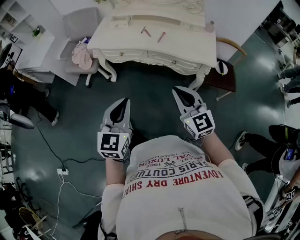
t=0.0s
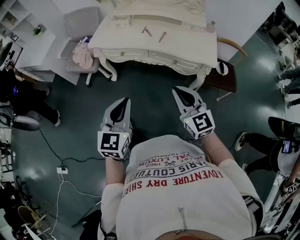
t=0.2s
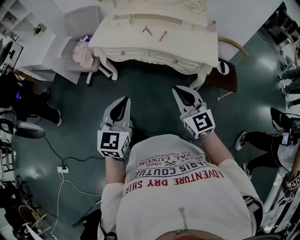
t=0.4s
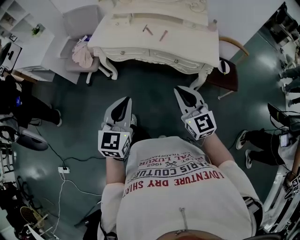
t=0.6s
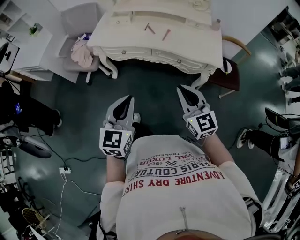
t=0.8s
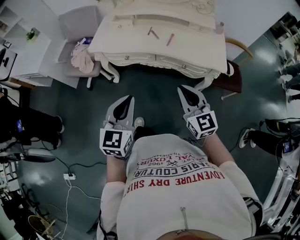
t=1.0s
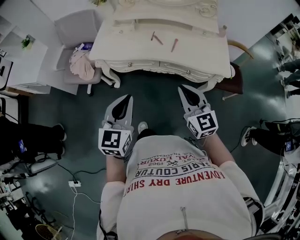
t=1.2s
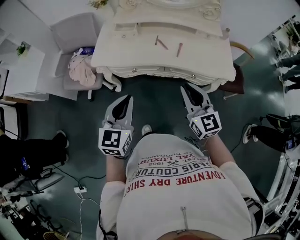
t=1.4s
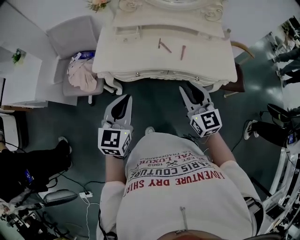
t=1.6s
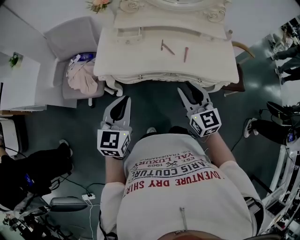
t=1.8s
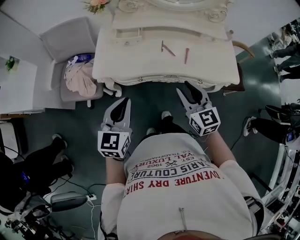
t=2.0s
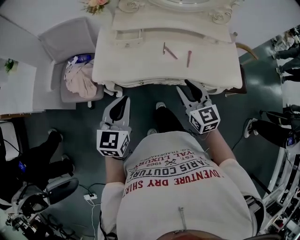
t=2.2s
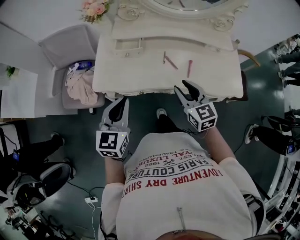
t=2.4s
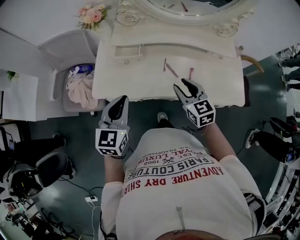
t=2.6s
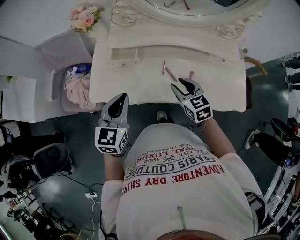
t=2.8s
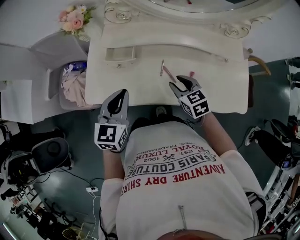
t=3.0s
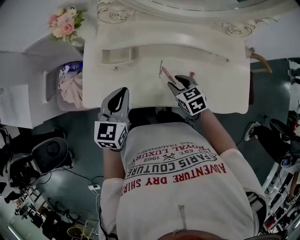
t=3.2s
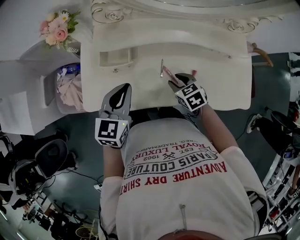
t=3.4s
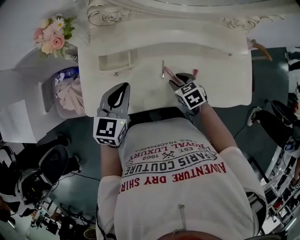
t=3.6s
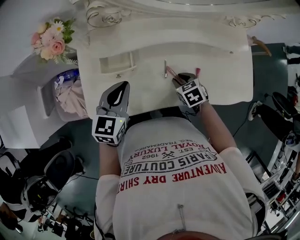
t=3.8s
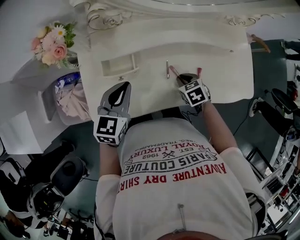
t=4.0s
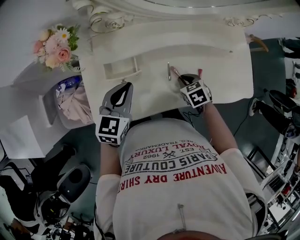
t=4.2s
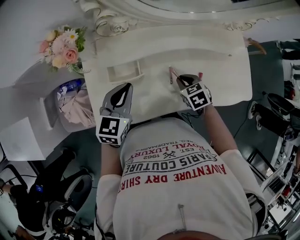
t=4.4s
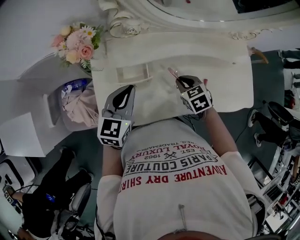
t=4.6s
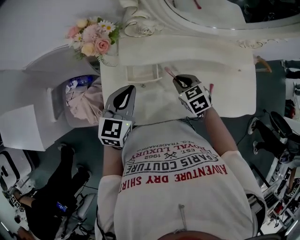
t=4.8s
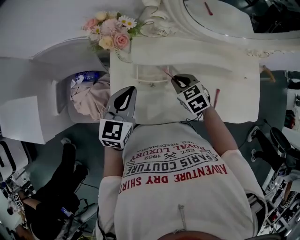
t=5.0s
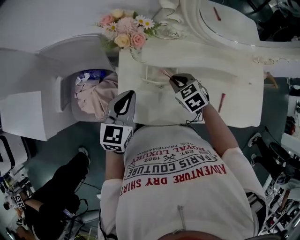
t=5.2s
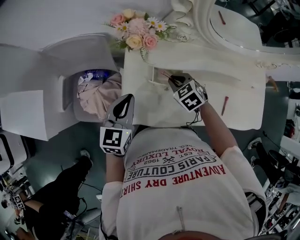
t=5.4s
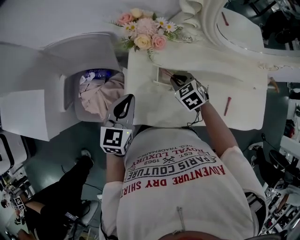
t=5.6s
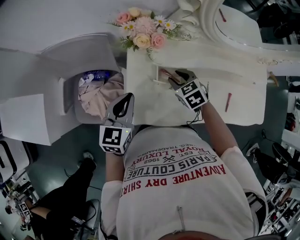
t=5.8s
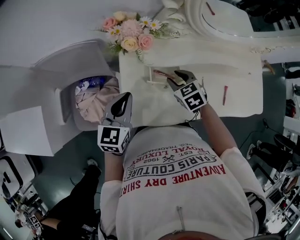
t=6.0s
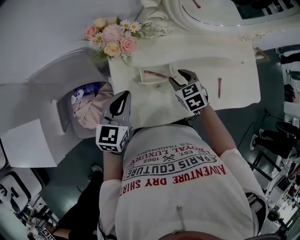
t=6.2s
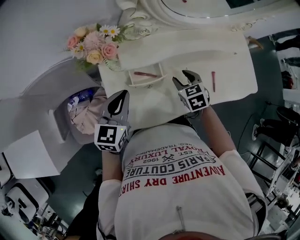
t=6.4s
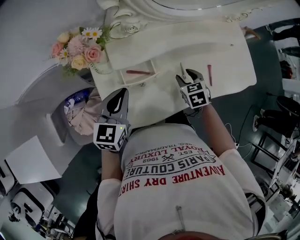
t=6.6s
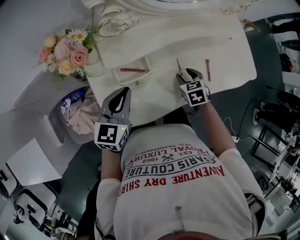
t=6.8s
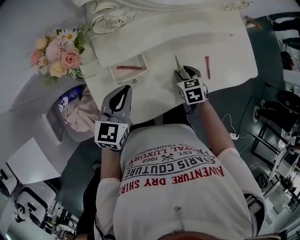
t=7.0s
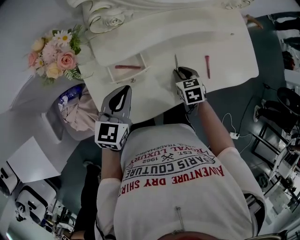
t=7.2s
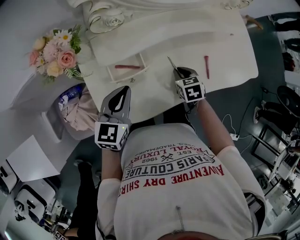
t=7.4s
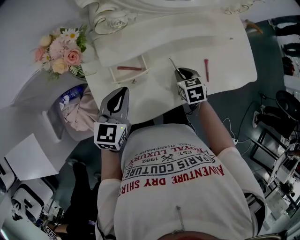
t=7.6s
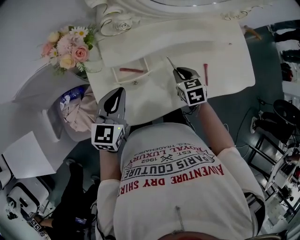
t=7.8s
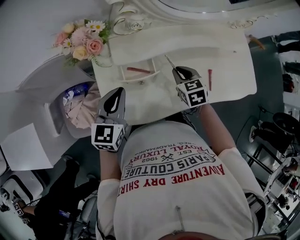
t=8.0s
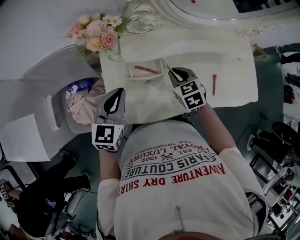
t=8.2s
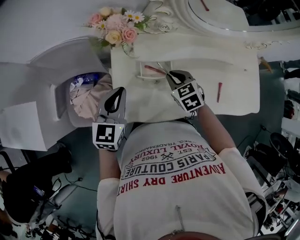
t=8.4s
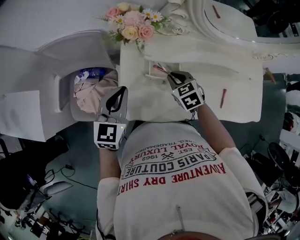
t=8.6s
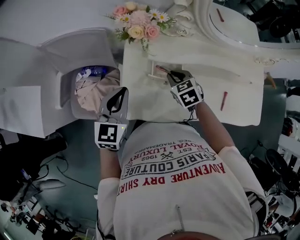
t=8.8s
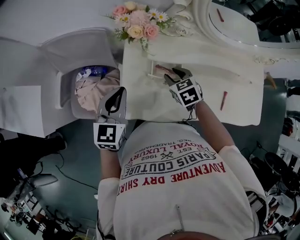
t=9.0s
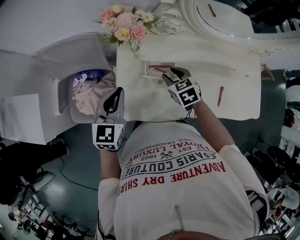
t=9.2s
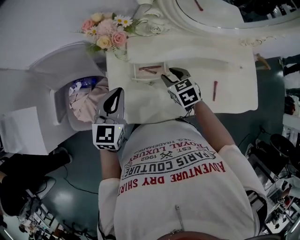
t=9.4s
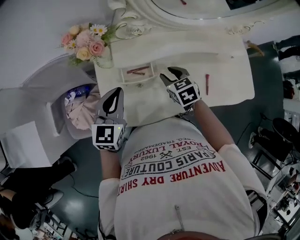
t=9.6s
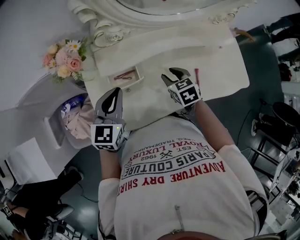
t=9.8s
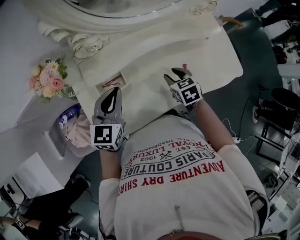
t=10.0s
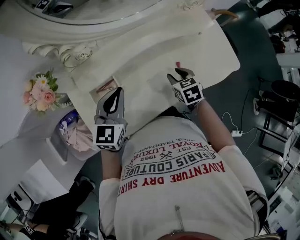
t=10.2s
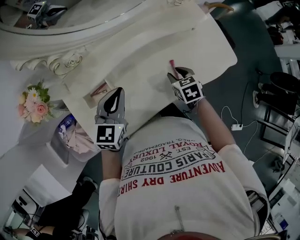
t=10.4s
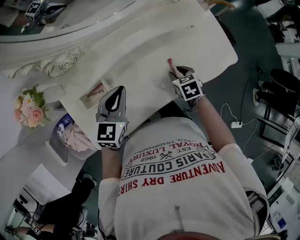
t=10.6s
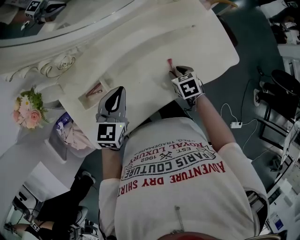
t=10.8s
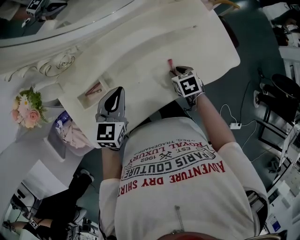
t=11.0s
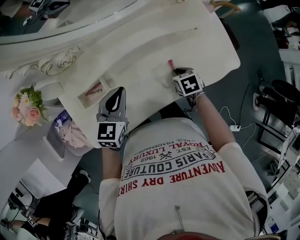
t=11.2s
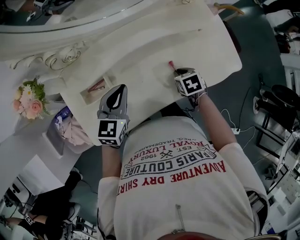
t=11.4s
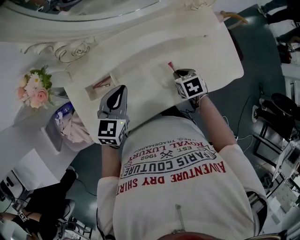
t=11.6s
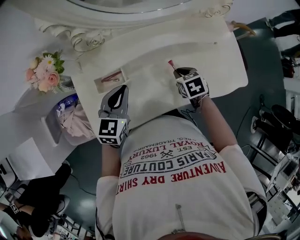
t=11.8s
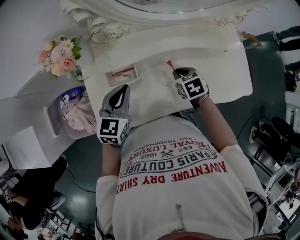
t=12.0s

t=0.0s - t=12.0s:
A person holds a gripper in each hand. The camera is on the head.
t=0.0s - t=1.6s: Both grippers move forward and to the left, roughly 30 cm.
t=1.6s - t=3.0s: The left gripper moves forward, some 25 cm. The right gripper is displaced forward and downward by roughly 30 cm, and angles its fingers downward, by about 30 degrees.
t=3.0s - t=4.4s: The right gripper travels downward and forward by roughly 10 cm, and rotates approximately 20 degrees; the left gripper moves forward, some 10 cm.
t=4.4s - t=6.0s: The grippers both shift to the left by approximately 20 cm.
t=6.0s - t=7.6s: The left gripper moves about 15 cm; the right gripper moves approximately 20 cm, and turns by about 30 degrees.
t=7.6s - t=9.0s: The left gripper changes place by some 15 cm, and changes its angle by some 20 degrees. Meanwhile the right gripper changes place by roughly 20 cm, and rotates some 30 degrees.
t=9.0s - t=10.4s: The left gripper shifts by roughly 30 cm, and rotates some 30 degrees, while the right gripper ends up about 35 cm from where it was, and rotates about 40 degrees.
t=10.4s - t=12.0s: The two grippers go some 10 cm to the left.

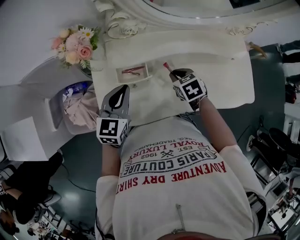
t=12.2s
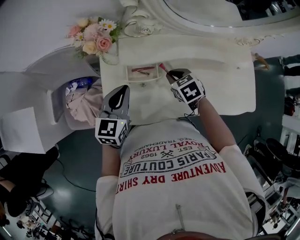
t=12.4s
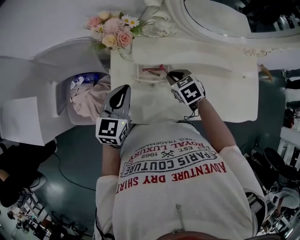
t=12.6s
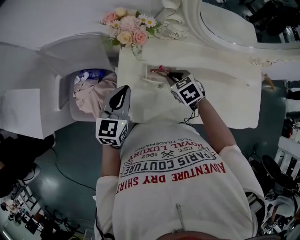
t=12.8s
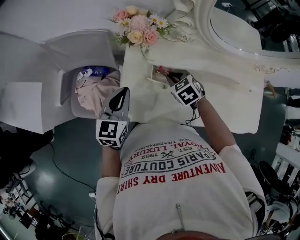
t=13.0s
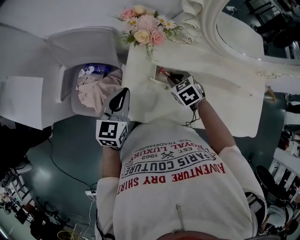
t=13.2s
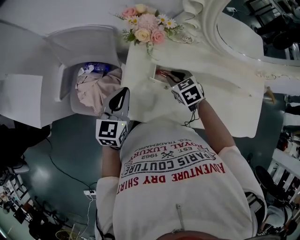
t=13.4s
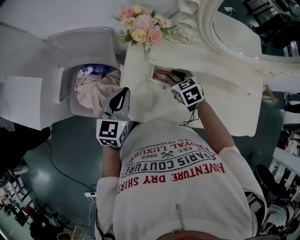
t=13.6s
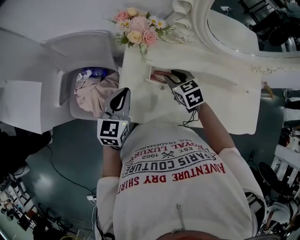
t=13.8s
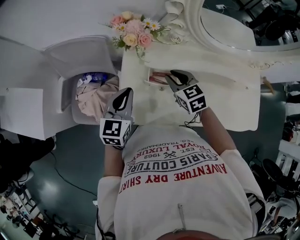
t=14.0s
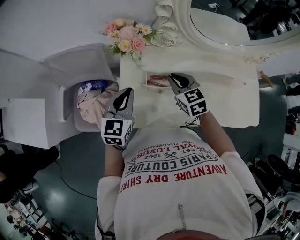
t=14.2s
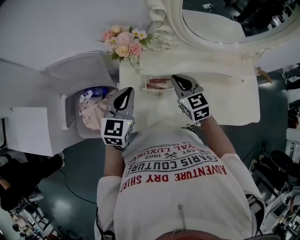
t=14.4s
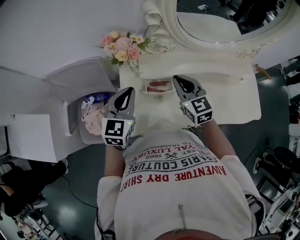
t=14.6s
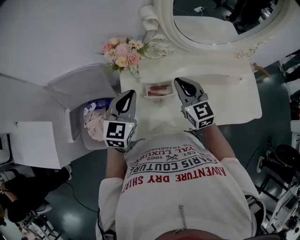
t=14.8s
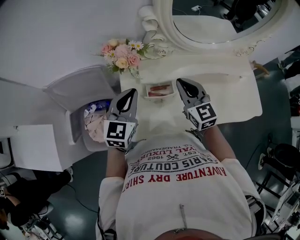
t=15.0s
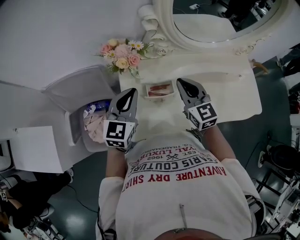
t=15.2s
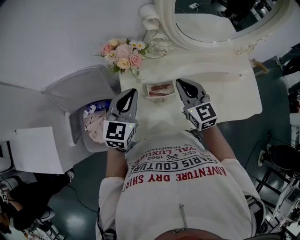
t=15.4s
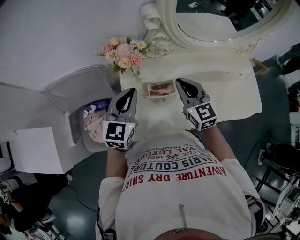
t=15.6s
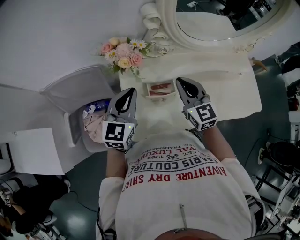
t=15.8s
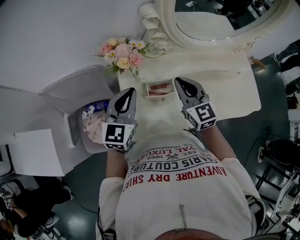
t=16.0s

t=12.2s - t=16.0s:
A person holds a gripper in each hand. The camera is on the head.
t=12.2s - t=13.4s: Both grippers travel together to the left, some 15 cm. The right gripper changes its angle by approximately 20 degrees.
t=13.4s - t=14.8s: The left gripper moves upward and to the right, about 10 cm, and turns by about 20 degrees, while the right gripper moves upward, about 15 cm, and tilts its fingers about 40 degrees upward.
t=14.8s - t=16.0s: The grippers move only a little.

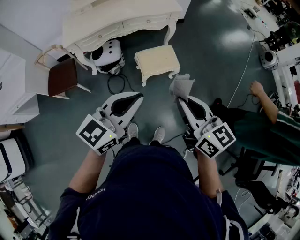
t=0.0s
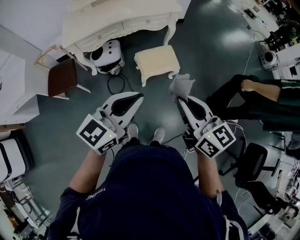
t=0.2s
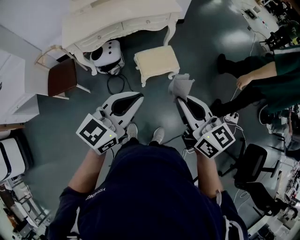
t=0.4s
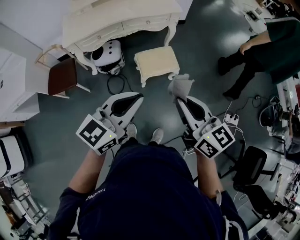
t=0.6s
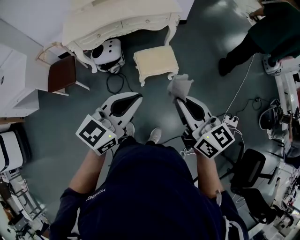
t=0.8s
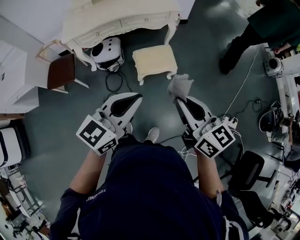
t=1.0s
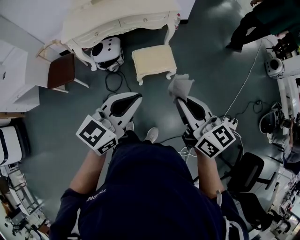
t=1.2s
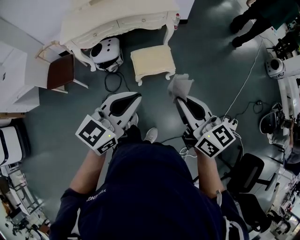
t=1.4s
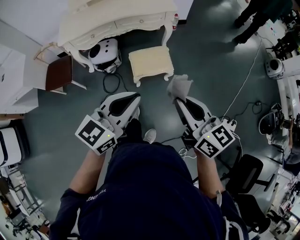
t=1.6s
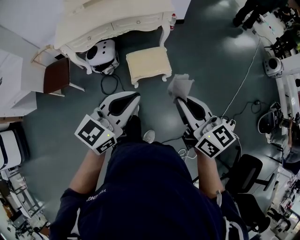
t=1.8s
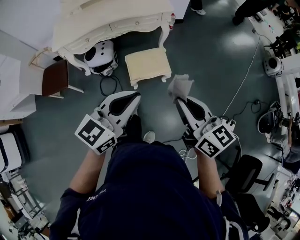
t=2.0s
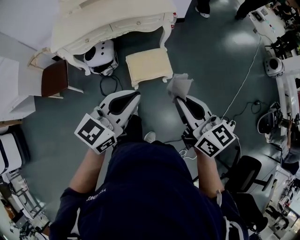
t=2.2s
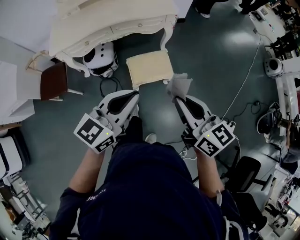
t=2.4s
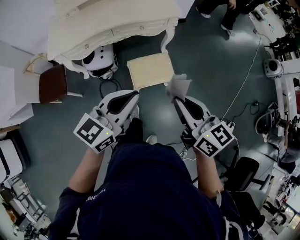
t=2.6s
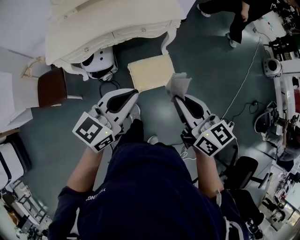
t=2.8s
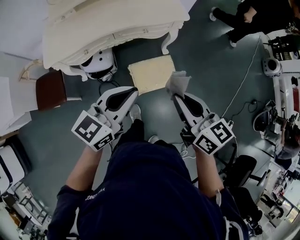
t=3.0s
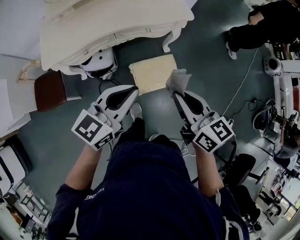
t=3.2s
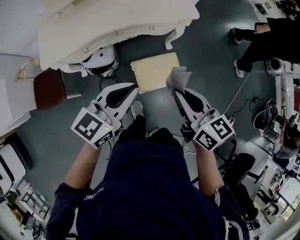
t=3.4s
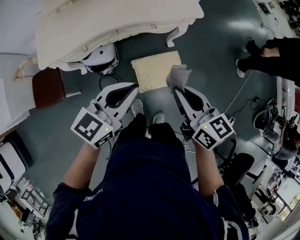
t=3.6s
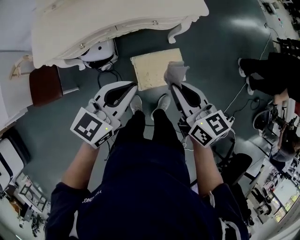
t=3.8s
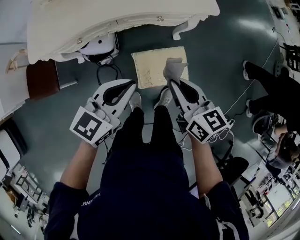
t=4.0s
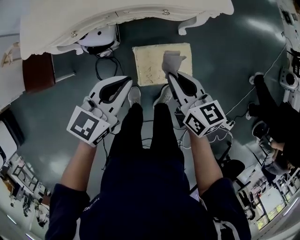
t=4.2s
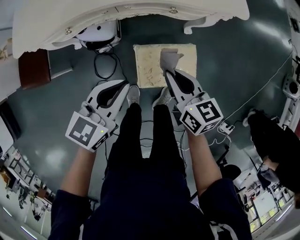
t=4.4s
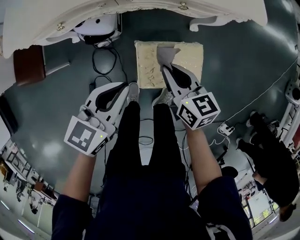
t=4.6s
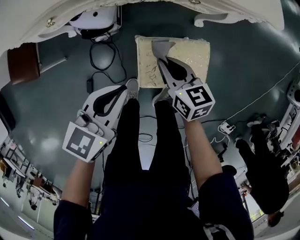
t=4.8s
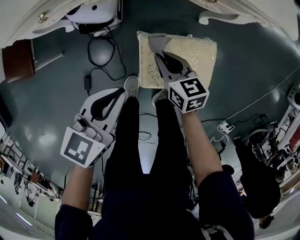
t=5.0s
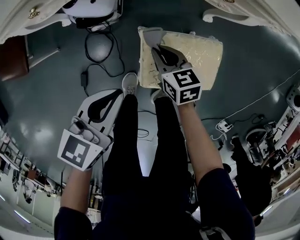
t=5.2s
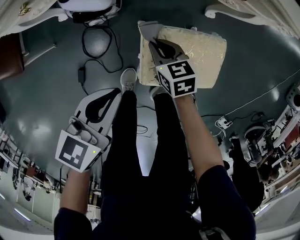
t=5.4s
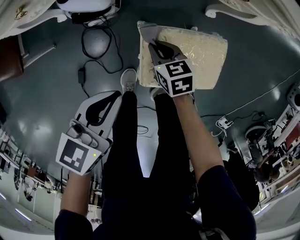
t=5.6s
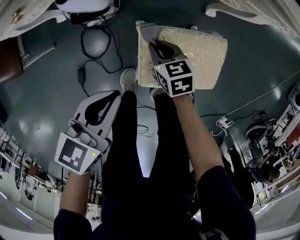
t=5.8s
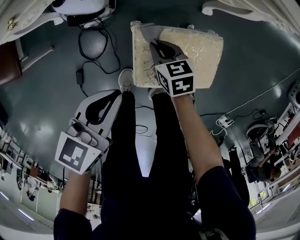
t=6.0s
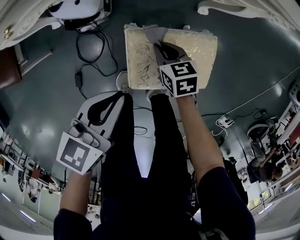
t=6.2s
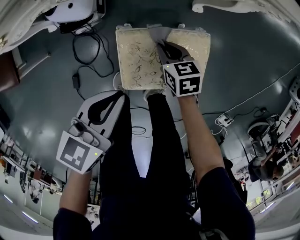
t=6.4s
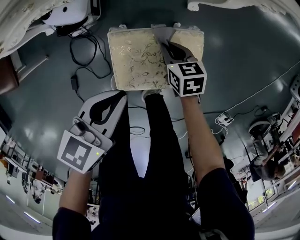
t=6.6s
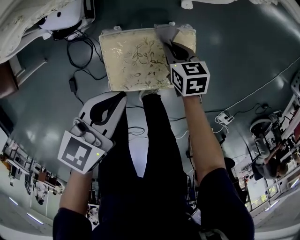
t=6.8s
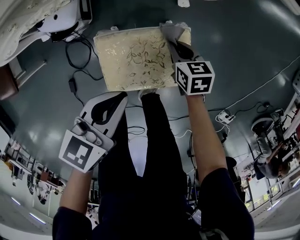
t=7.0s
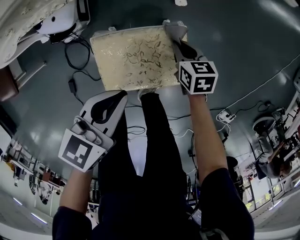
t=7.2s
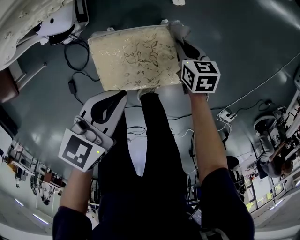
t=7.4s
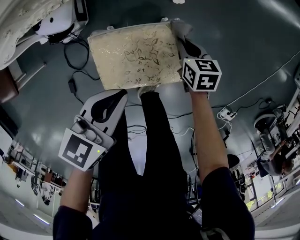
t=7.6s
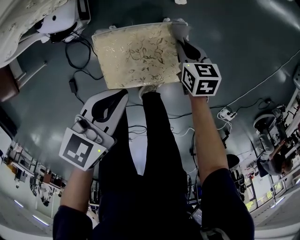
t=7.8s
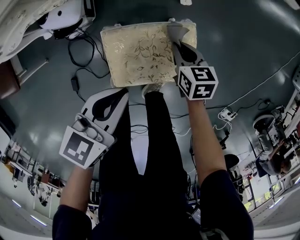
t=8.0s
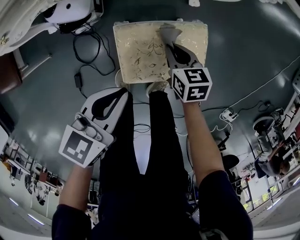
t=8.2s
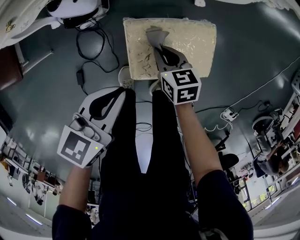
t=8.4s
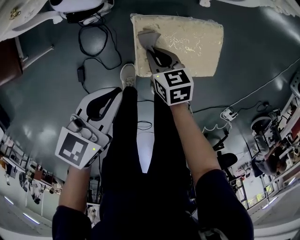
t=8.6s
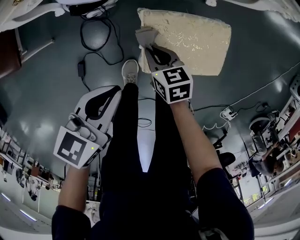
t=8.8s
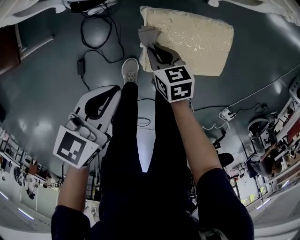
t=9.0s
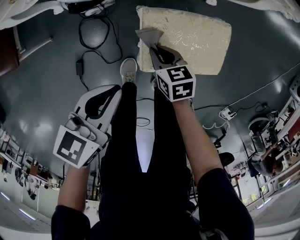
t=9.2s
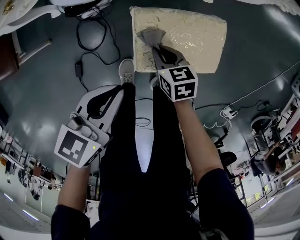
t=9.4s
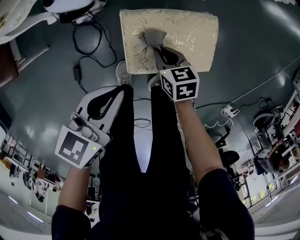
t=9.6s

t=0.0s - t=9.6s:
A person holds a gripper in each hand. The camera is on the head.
t=0.0s - t=1.6s: Both grippers move to the right, approximately 10 cm.
t=1.6s - t=3.2s: The grippers both shift forward and to the left by some 30 cm.
t=3.2s - t=4.8s: The right gripper goes roughly 50 cm downward and forward, and turns by approximately 20 degrees, while the left gripper travels downward by some 35 cm, and swivels roughly 30 degrees.
t=4.8s - t=6.4s: The left gripper travels downward and to the right by roughly 10 cm; the right gripper shifts about 20 cm downward.
t=6.4s - t=8.0s: The left gripper is displaced to the right by approximately 5 cm, while the right gripper travels to the right by some 10 cm.
t=8.0s - t=9.6s: The left gripper shifts about 10 cm to the left and backward. The right gripper travels to the left and backward by approximately 15 cm.
